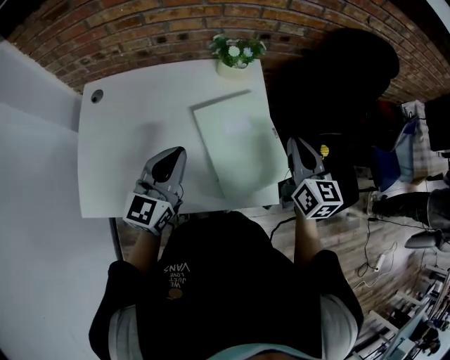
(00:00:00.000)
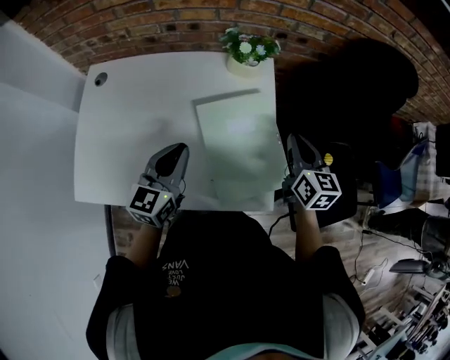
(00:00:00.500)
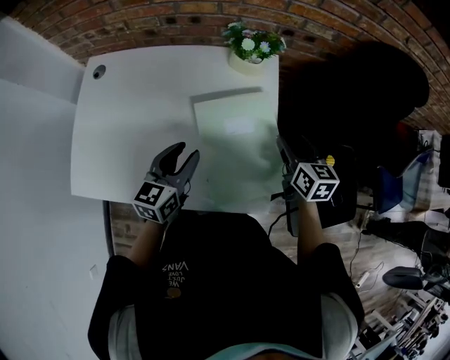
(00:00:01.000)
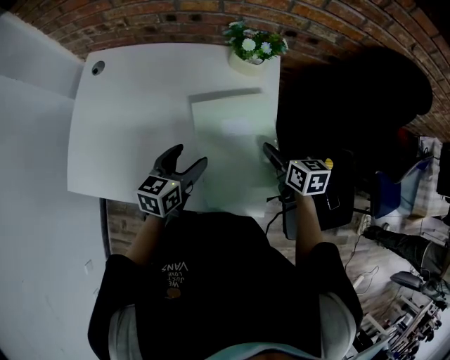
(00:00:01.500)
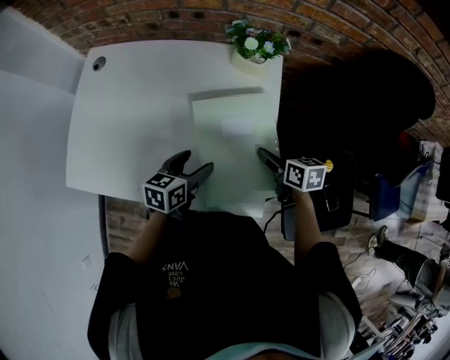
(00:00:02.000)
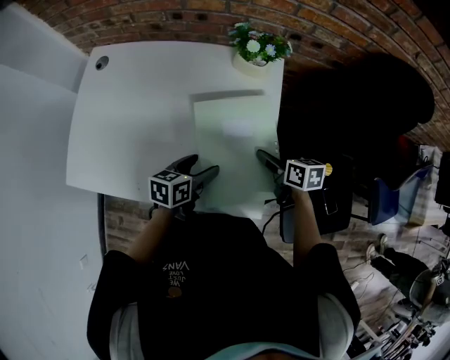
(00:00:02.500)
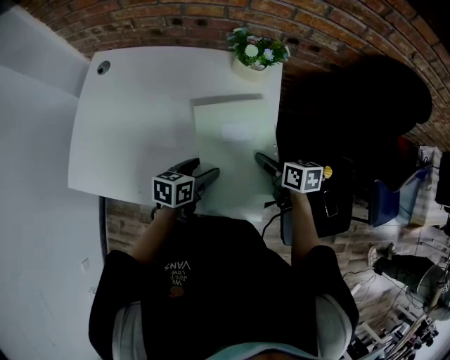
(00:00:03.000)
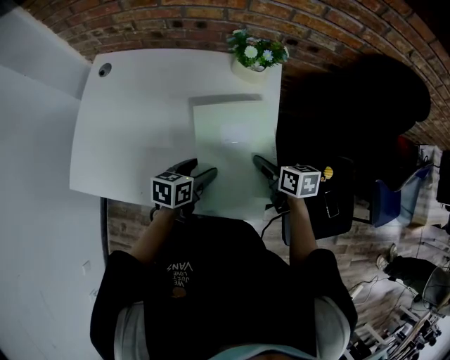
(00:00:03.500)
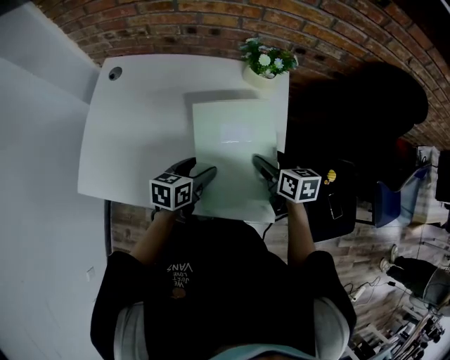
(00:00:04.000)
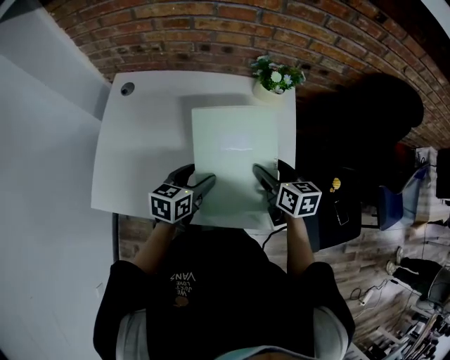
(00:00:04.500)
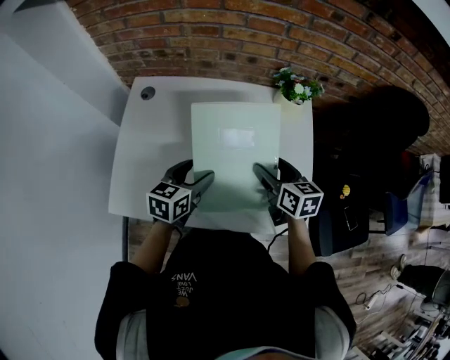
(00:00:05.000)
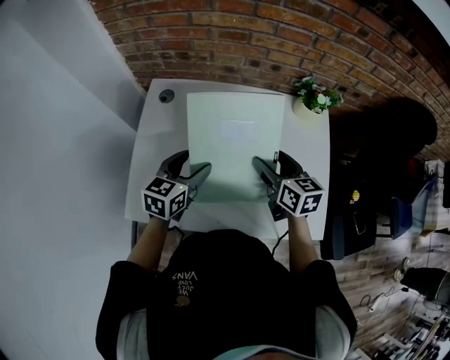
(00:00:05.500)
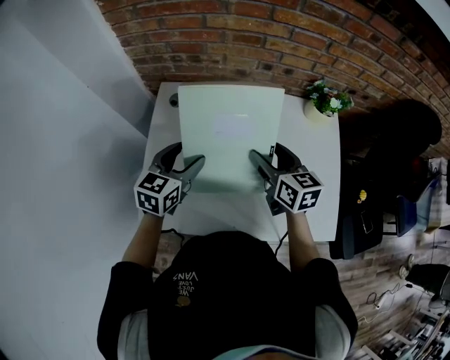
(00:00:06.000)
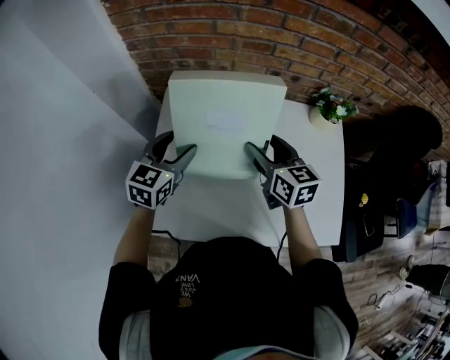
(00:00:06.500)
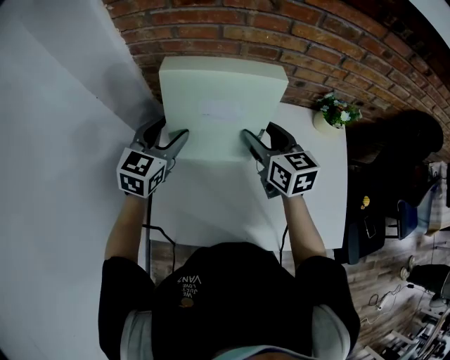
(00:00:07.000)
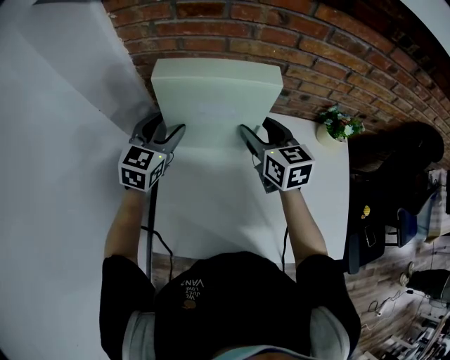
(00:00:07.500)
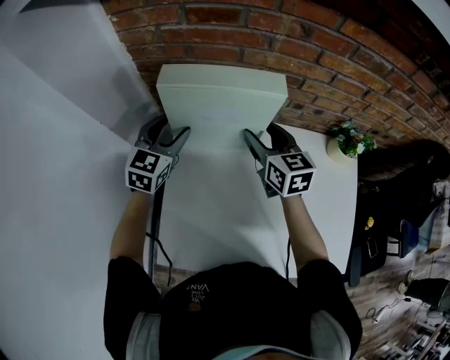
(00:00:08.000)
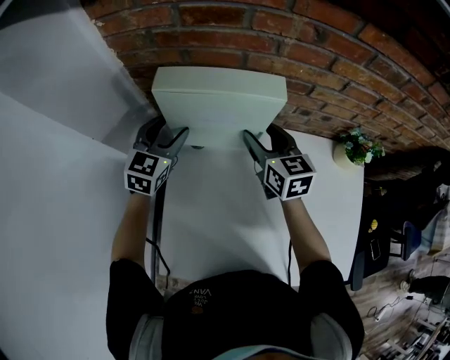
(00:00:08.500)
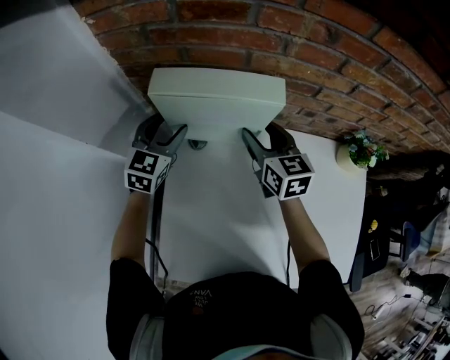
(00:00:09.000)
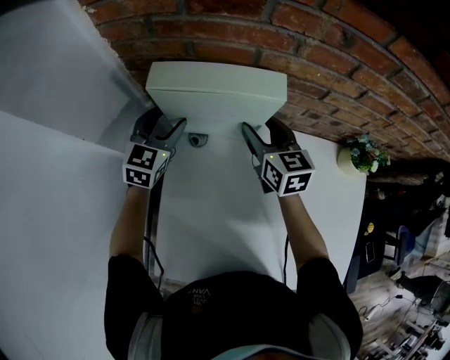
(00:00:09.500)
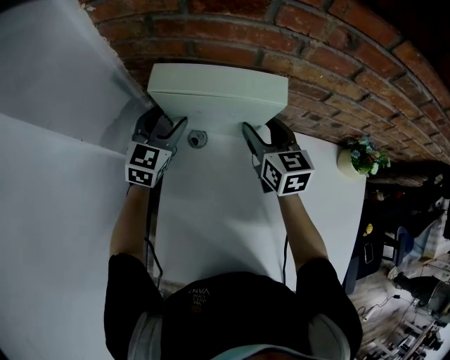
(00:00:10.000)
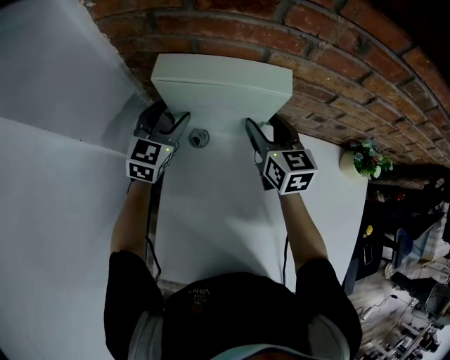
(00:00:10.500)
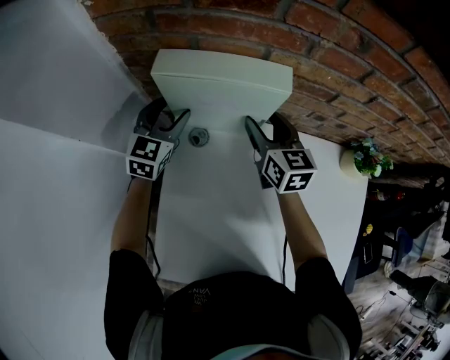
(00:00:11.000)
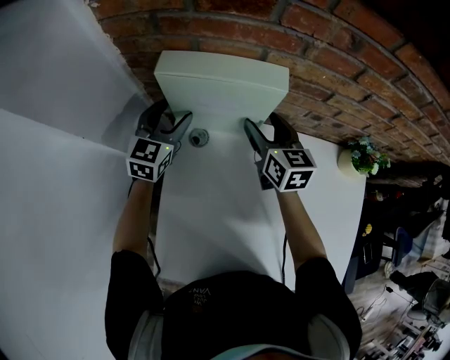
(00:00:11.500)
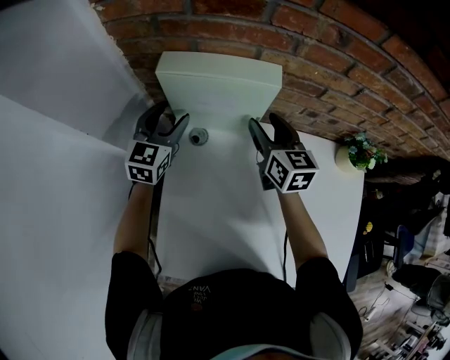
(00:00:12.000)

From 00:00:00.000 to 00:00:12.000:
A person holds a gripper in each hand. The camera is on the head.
From 00:00:00.000 to 00:00:02.000: Both grippers travel together downward, roughly 20 cm. The left gripper changes its angle by approximately 40 degrees, and opens its fingers. Meanwhile the right gripper turns by approximately 40 degrees, and opens its fingers.
From 00:00:02.000 to 00:00:04.000: The right gripper travels to the left by about 5 cm.
From 00:00:04.000 to 00:00:06.000: The two grippers go about 30 cm to the left. The left gripper turns by approximately 30 degrees.
From 00:00:06.000 to 00:00:08.000: The two grippers go approximately 25 cm forward and to the left.
From 00:00:08.000 to 00:00:10.000: The two grippers go roughly 10 cm forward and downward.
From 00:00:10.000 to 00:00:12.000: The grippers make only small movements.

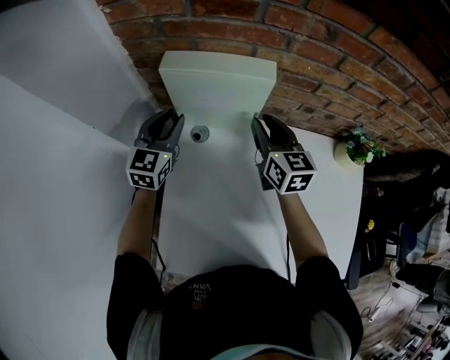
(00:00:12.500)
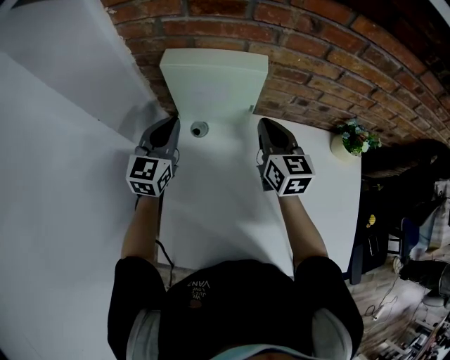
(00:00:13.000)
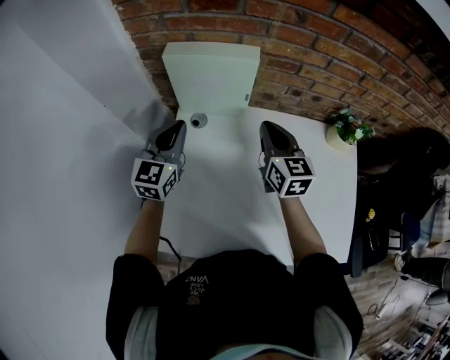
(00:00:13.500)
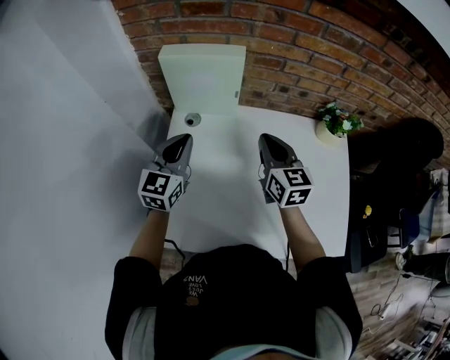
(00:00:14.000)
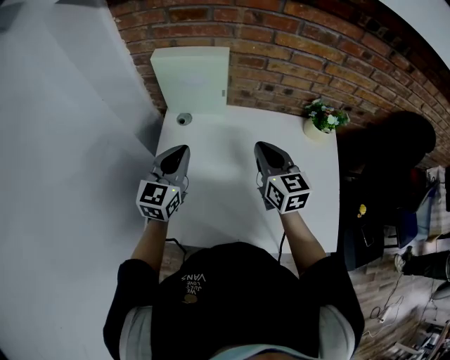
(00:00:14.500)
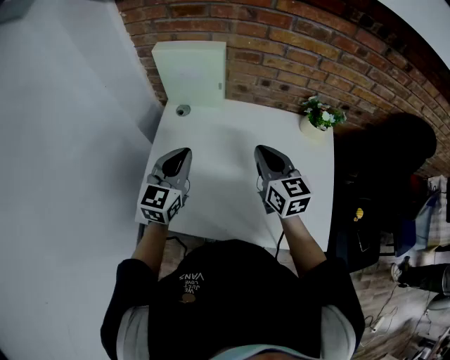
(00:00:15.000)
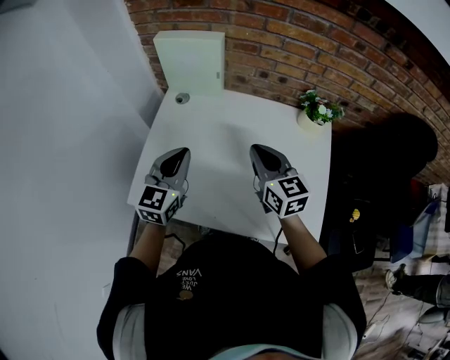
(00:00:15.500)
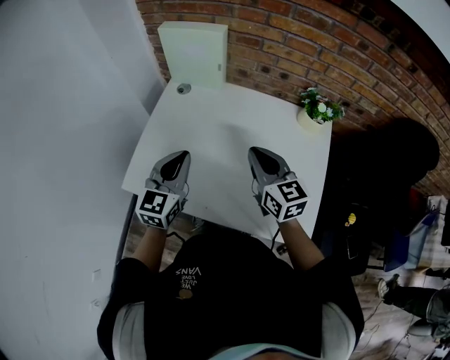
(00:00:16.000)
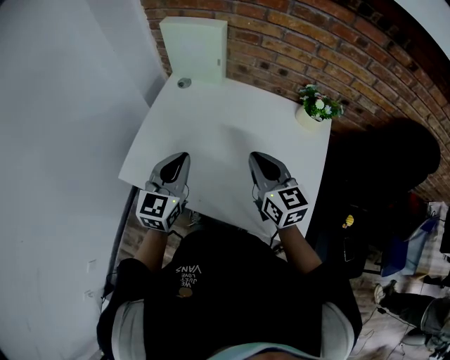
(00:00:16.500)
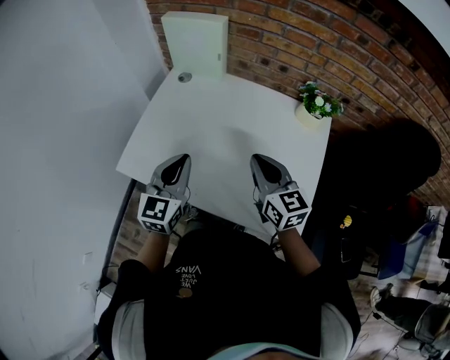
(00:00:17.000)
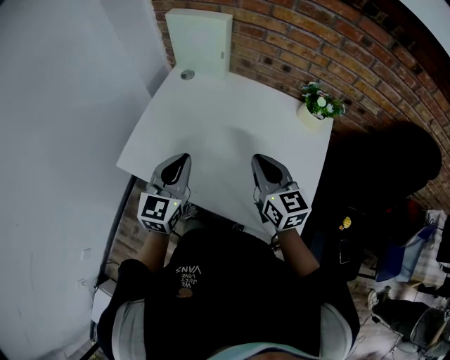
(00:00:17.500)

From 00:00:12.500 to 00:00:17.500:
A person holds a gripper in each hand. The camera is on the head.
From 00:00:12.500 to 00:00:15.000: Both grippers move backward and to the right, some 30 cm. The left gripper closes its fingers.
From 00:00:15.000 to 00:00:17.500: The two grippers go roughly 15 cm backward and to the right.

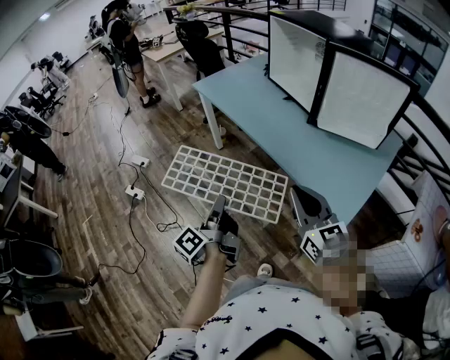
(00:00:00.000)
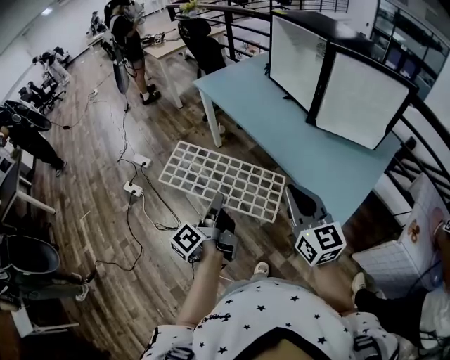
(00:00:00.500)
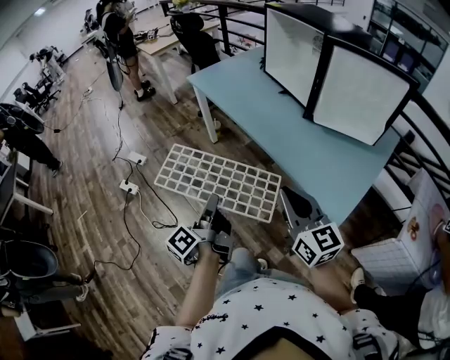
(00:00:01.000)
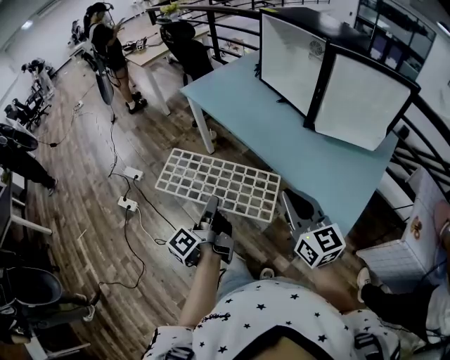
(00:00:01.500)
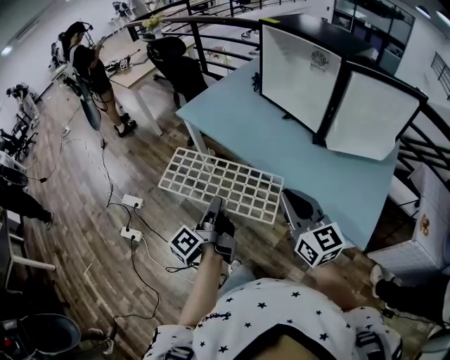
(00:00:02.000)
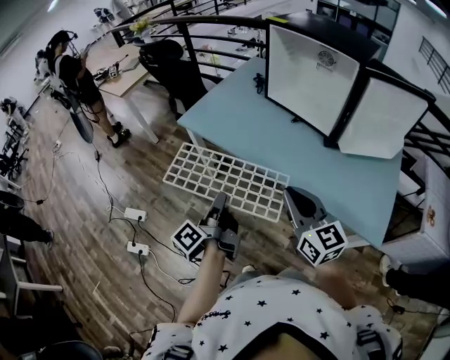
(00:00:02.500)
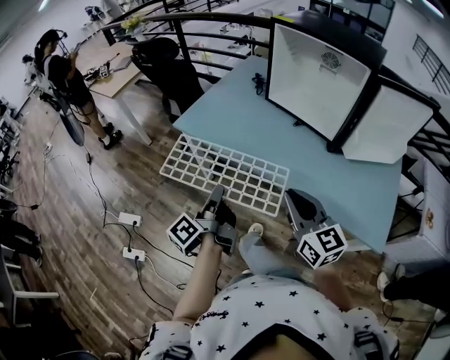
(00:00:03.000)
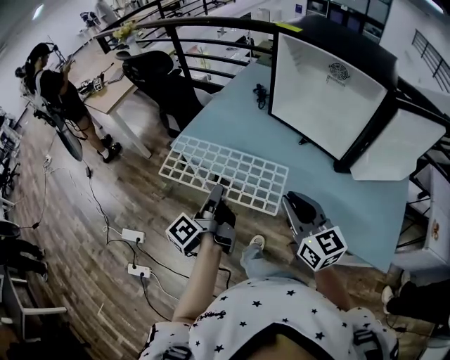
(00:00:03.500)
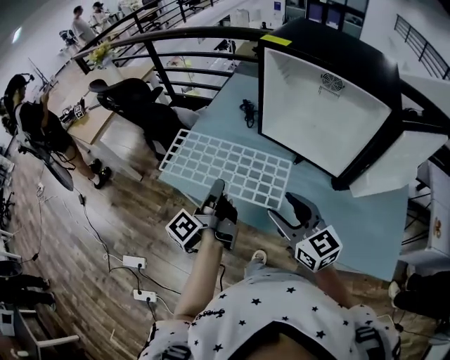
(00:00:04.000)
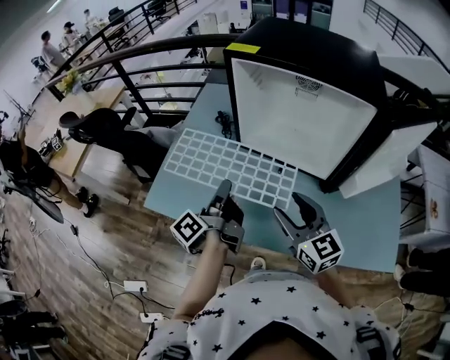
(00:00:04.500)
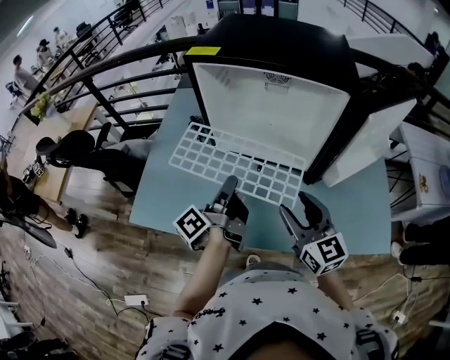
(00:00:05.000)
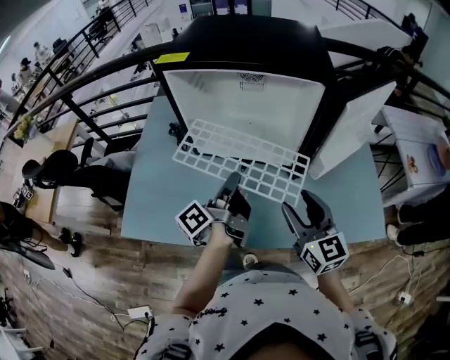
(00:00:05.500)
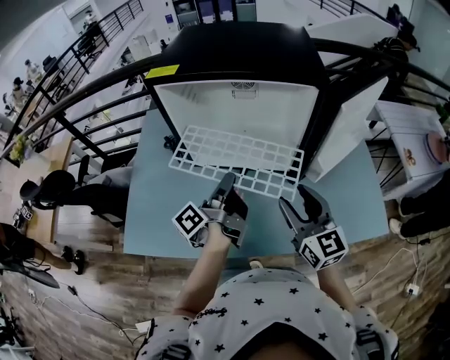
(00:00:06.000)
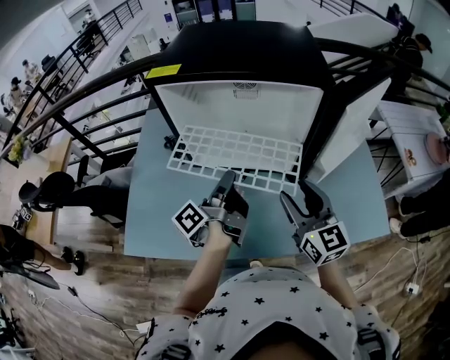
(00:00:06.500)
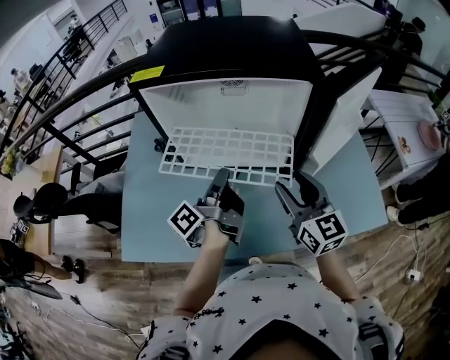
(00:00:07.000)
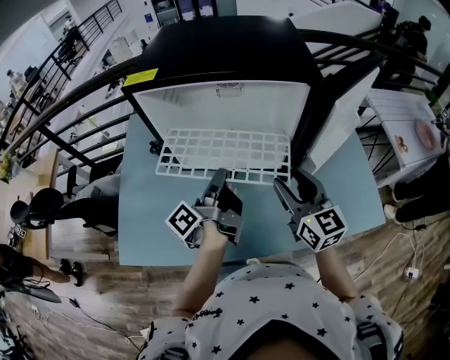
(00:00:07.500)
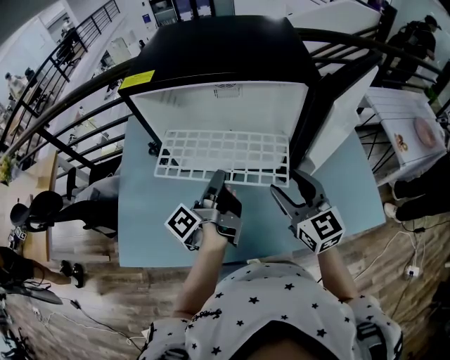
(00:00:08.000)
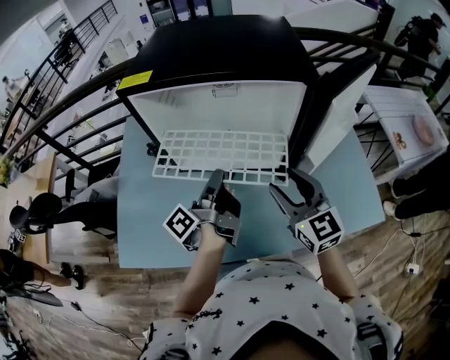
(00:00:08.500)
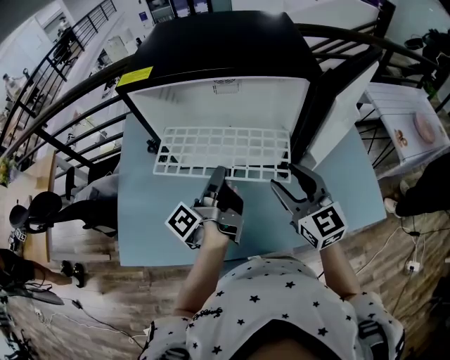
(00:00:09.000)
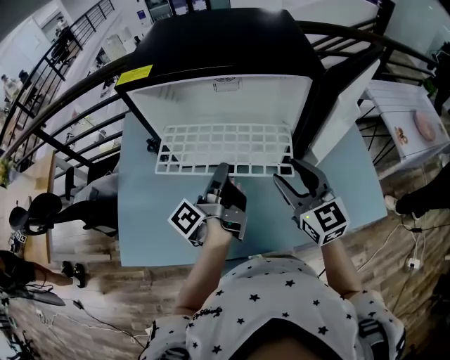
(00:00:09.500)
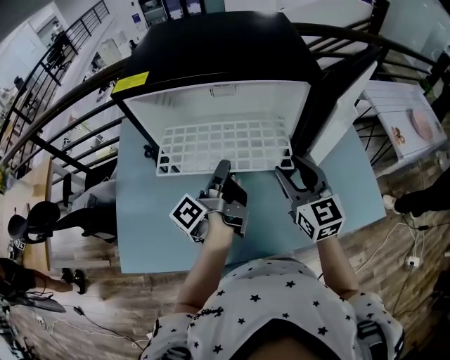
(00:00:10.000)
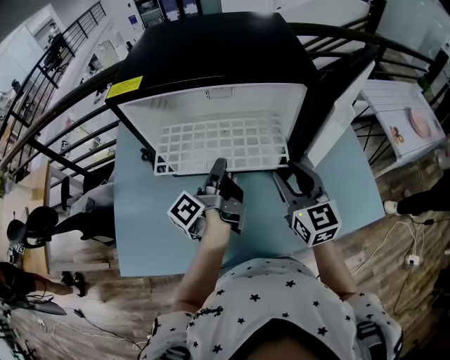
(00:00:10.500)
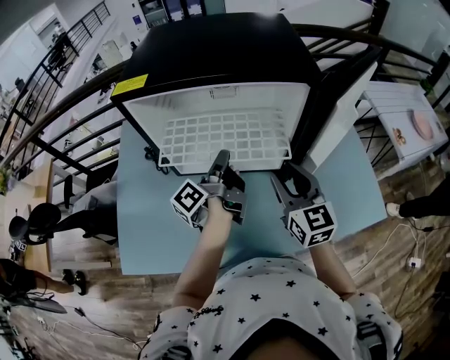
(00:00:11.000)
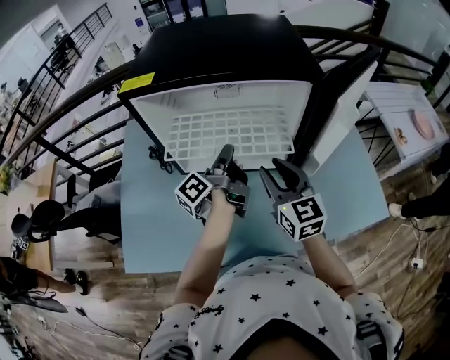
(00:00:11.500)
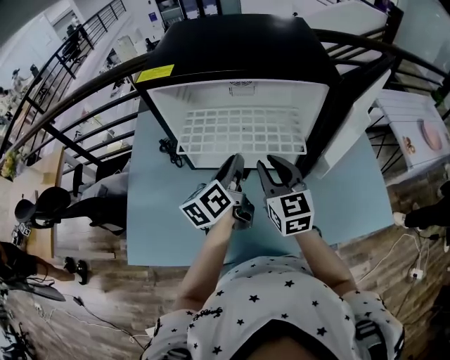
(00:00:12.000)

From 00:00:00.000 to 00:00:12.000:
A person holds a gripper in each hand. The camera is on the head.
From 00:00:00.000 to 00:00:02.000: The left gripper travels forward by some 25 cm; the right gripper moves forward and to the left, about 25 cm.
From 00:00:02.000 to 00:00:04.000: Both grippers move forward, roughly 35 cm. The right gripper opens.
From 00:00:04.000 to 00:00:06.000: The left gripper shifts by about 20 cm, and changes its angle by approximately 30 degrees. The right gripper changes place by about 15 cm, and changes its angle by roughly 40 degrees.
From 00:00:06.000 to 00:00:08.000: The grippers stay close to where they were, moving slightly.
From 00:00:08.000 to 00:00:10.000: The grippers move only a little.
From 00:00:10.000 to 00:00:12.000: The left gripper rotates around the line of its fingers by roughly 40 degrees, clockwise from behind; the right gripper travels to the left by about 10 cm, and closes its fingers.
